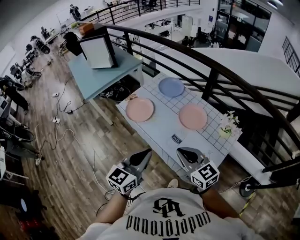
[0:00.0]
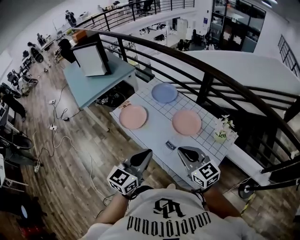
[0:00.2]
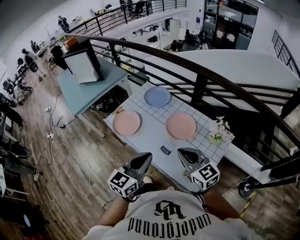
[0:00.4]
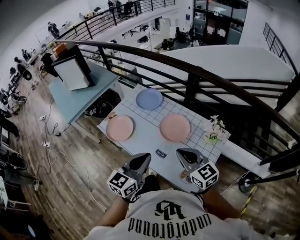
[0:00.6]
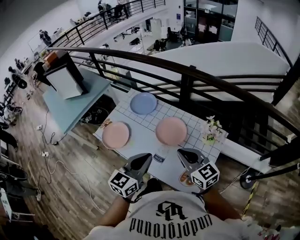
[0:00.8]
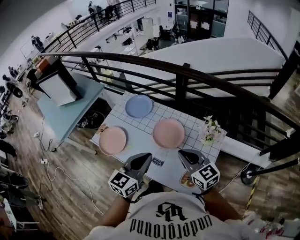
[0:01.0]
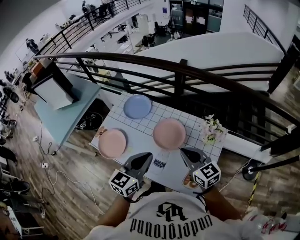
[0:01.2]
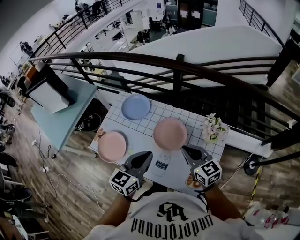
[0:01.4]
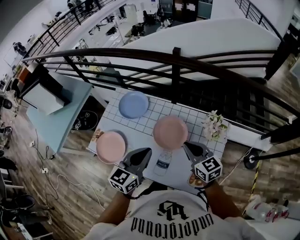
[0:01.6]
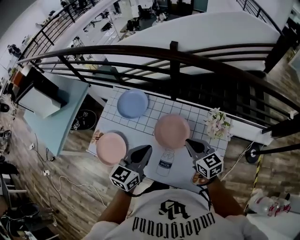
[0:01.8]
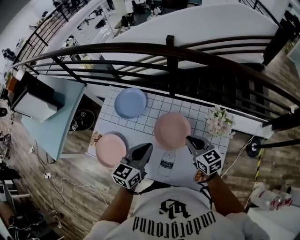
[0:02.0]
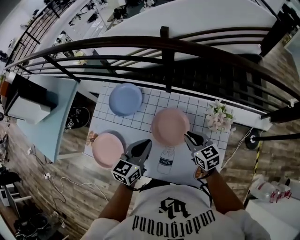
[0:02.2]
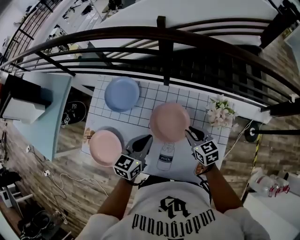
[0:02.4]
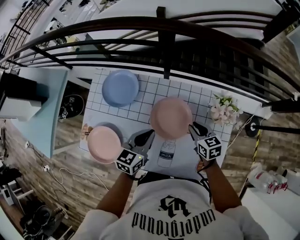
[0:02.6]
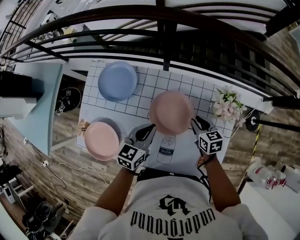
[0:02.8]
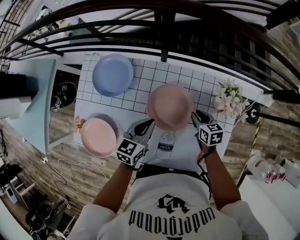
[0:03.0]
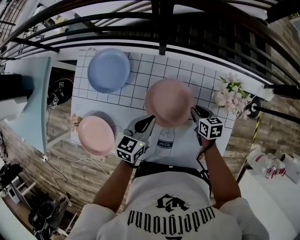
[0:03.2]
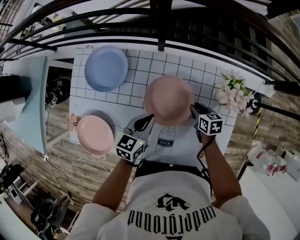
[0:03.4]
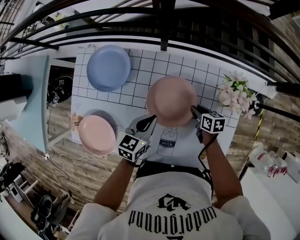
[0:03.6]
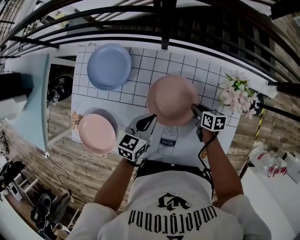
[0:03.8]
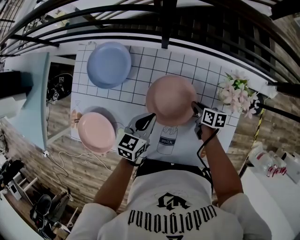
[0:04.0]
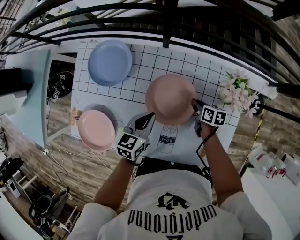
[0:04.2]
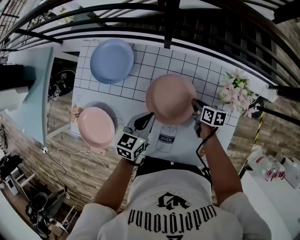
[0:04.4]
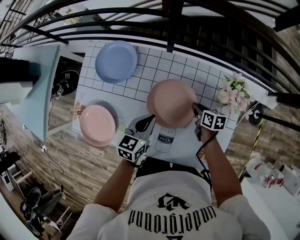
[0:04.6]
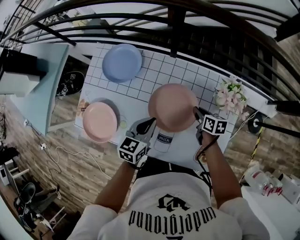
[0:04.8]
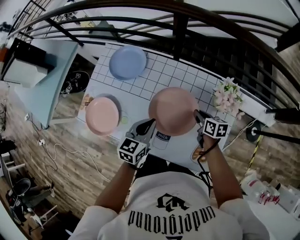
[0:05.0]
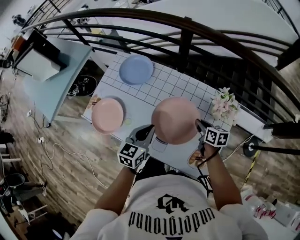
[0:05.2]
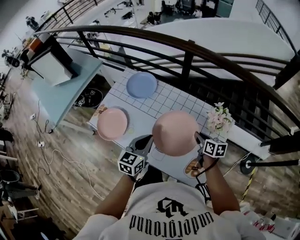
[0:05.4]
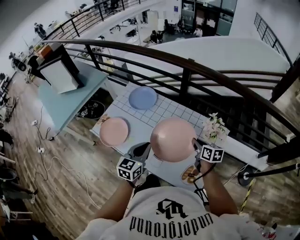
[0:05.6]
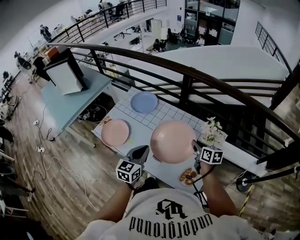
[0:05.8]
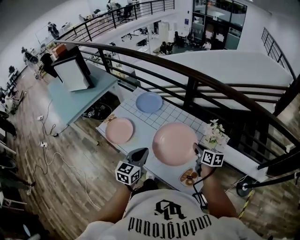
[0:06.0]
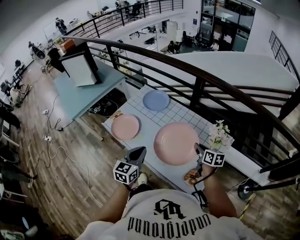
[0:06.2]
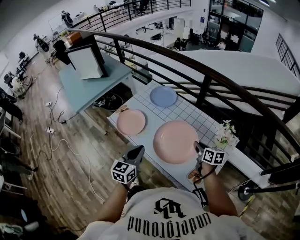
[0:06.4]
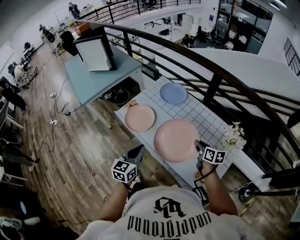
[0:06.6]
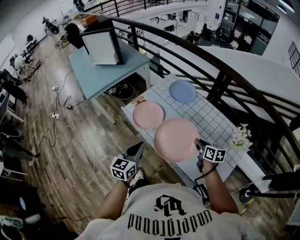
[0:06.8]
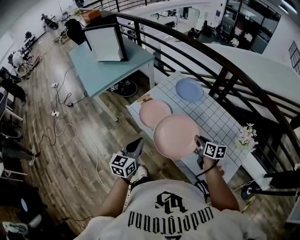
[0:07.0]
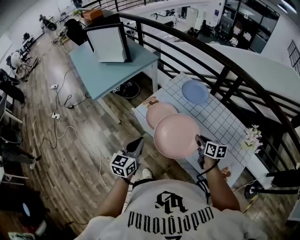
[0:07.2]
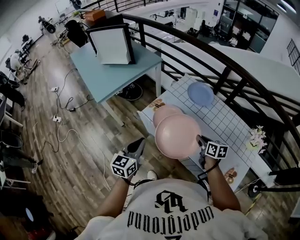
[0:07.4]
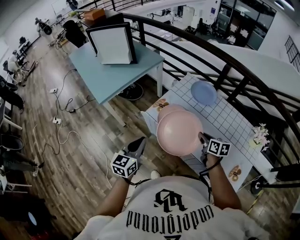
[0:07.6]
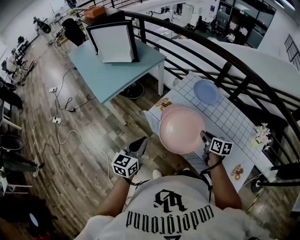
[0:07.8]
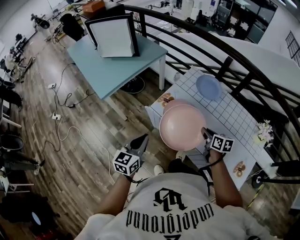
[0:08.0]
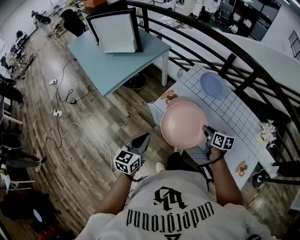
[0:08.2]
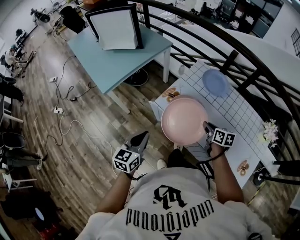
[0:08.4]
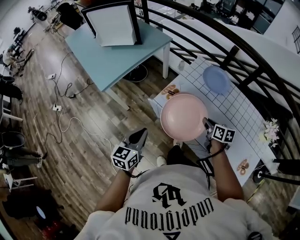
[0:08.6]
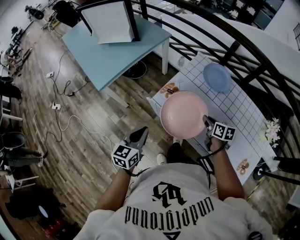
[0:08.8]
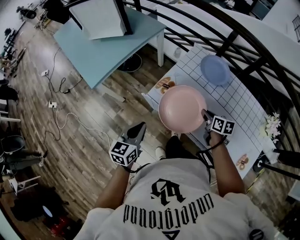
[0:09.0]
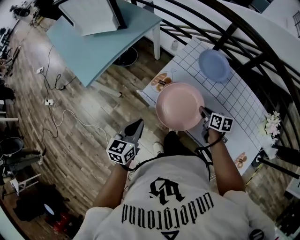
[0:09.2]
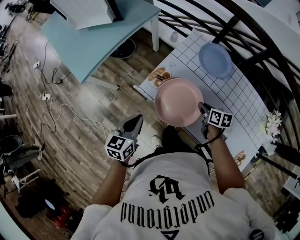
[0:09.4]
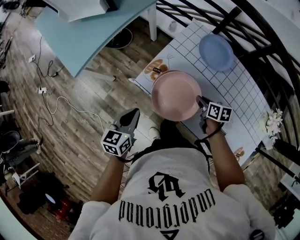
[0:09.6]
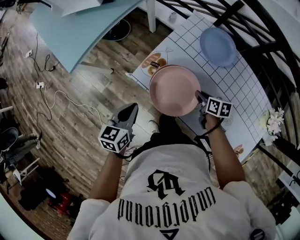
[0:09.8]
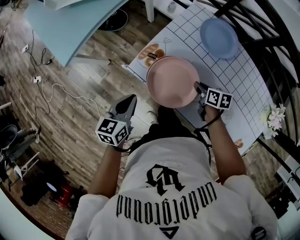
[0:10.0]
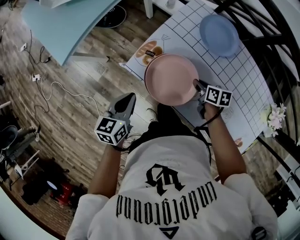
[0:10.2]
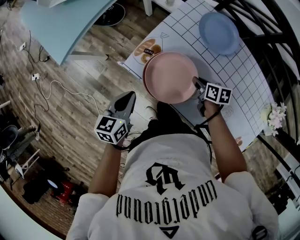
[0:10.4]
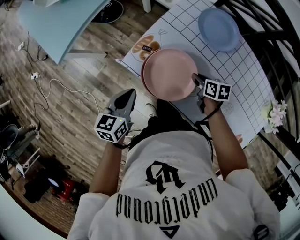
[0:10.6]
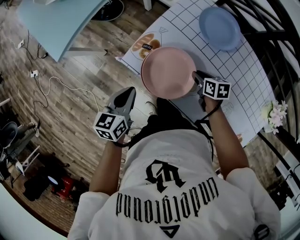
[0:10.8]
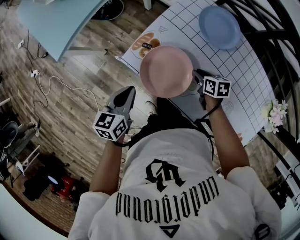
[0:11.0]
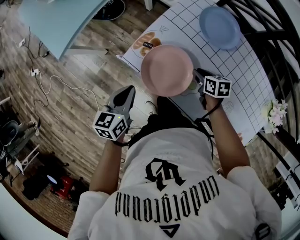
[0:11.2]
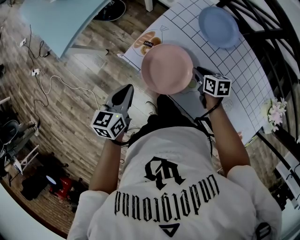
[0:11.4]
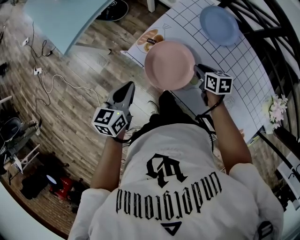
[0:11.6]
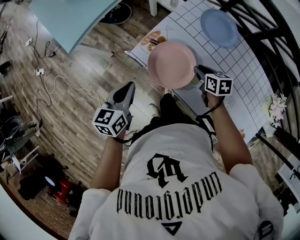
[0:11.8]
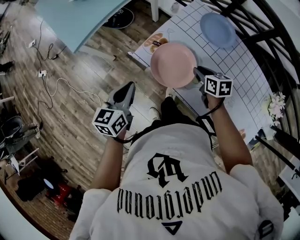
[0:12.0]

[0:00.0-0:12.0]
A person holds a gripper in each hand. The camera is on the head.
0:00.0 to 0:01.6: The left gripper is displaced forward by about 30 cm, and swivels roughly 20 degrees. Meanwhile the right gripper heads forward and to the right, covering roughly 30 cm, and turns by about 30 degrees.
0:01.6 to 0:03.0: Both grippers move downward and forward, roughly 30 cm. The left gripper changes its angle by roughly 20 degrees, while the right gripper rotates some 40 degrees.
0:03.0 to 0:04.4: The right gripper travels downward by roughly 5 cm, and rotates approximately 20 degrees.
0:04.4 to 0:06.0: The right gripper travels upward and backward by some 30 cm, and changes its angle by approximately 30 degrees. The left gripper is displaced backward and upward by some 35 cm, and swivels roughly 30 degrees.
0:06.0 to 0:07.6: The two grippers travel together, to the left, some 40 cm.
0:07.6 to 0:09.0: The two grippers go roughly 15 cm forward and downward.
0:09.0 to 0:10.4: The right gripper shifts about 15 cm downward and forward, while the left gripper shifts approximately 15 cm downward, forward and to the right.
0:10.4 to 0:12.0: The left gripper travels upward and backward by about 10 cm. Meanwhile the right gripper moves upward, roughly 10 cm, and swivels some 20 degrees.

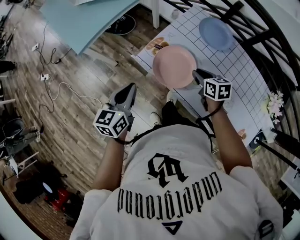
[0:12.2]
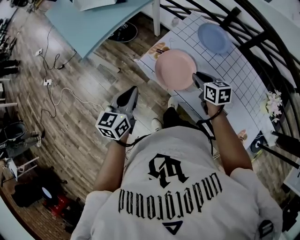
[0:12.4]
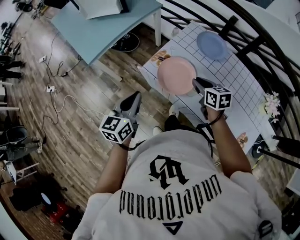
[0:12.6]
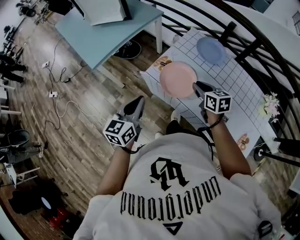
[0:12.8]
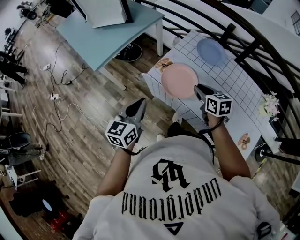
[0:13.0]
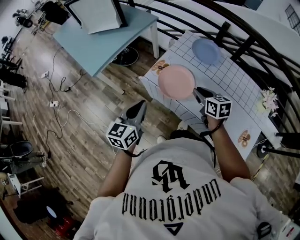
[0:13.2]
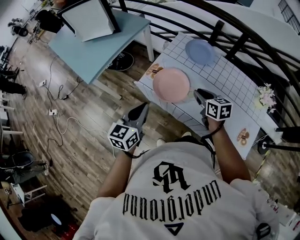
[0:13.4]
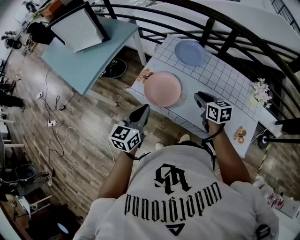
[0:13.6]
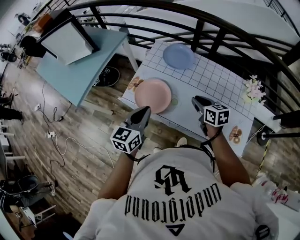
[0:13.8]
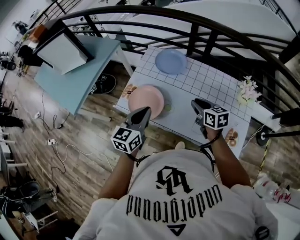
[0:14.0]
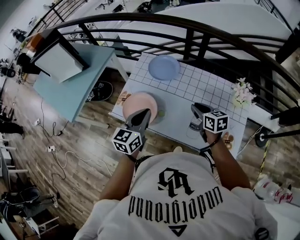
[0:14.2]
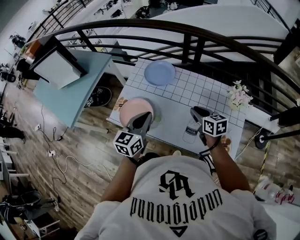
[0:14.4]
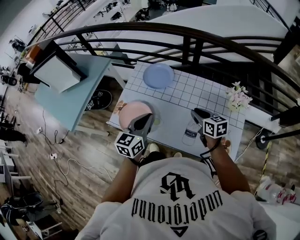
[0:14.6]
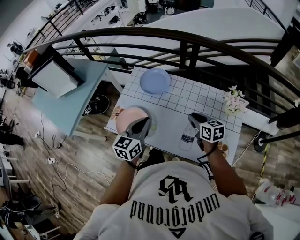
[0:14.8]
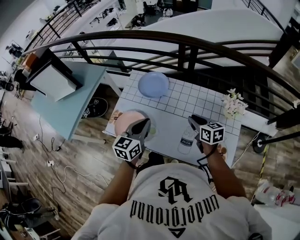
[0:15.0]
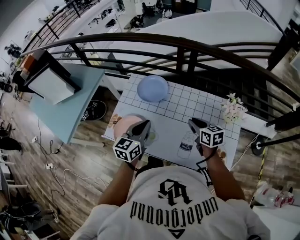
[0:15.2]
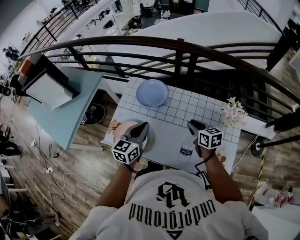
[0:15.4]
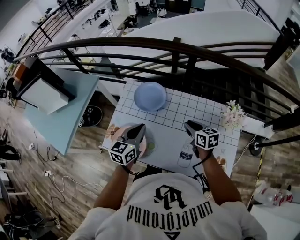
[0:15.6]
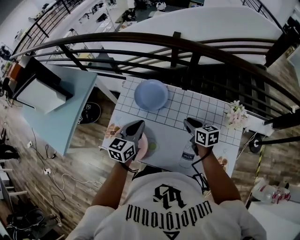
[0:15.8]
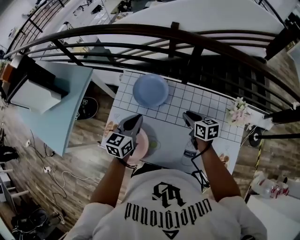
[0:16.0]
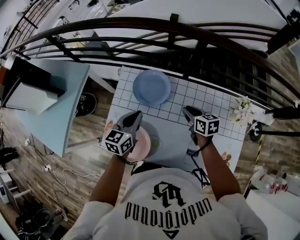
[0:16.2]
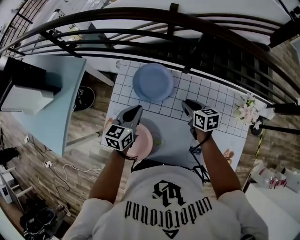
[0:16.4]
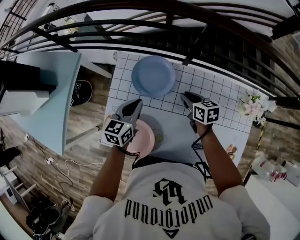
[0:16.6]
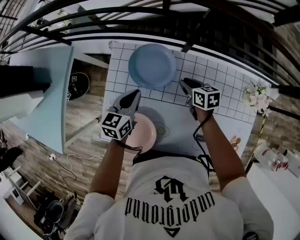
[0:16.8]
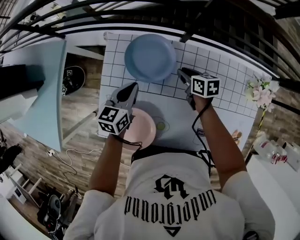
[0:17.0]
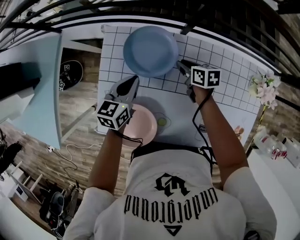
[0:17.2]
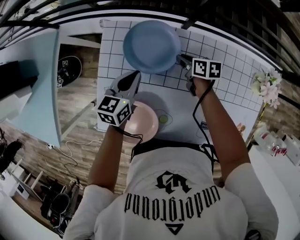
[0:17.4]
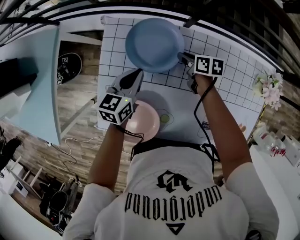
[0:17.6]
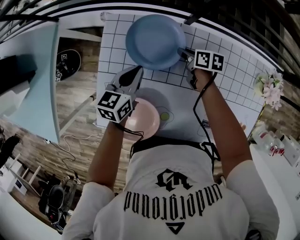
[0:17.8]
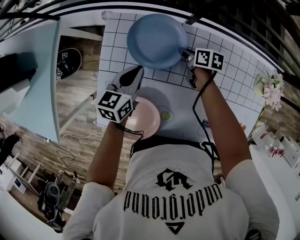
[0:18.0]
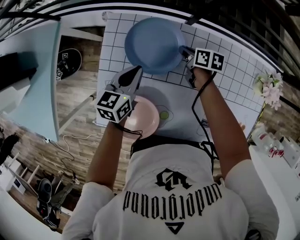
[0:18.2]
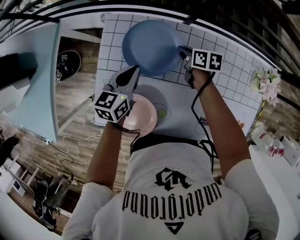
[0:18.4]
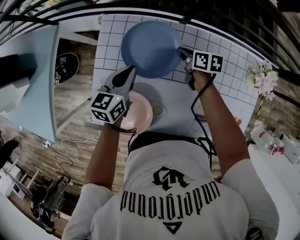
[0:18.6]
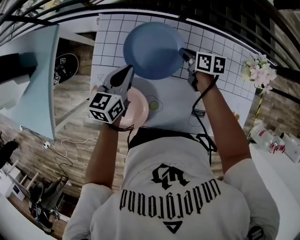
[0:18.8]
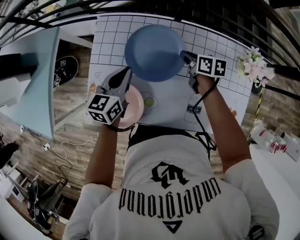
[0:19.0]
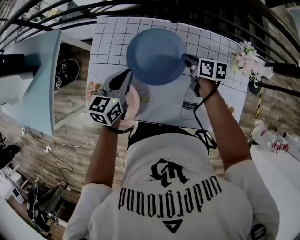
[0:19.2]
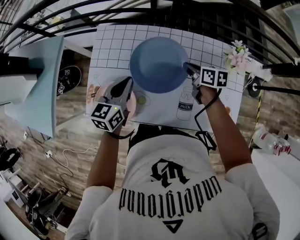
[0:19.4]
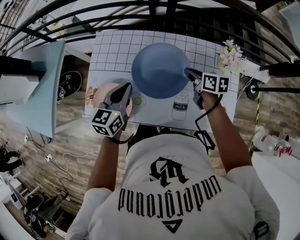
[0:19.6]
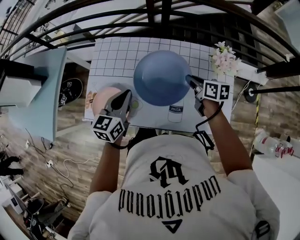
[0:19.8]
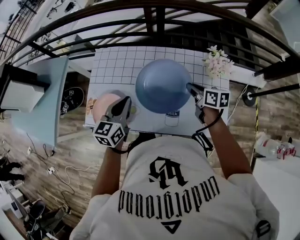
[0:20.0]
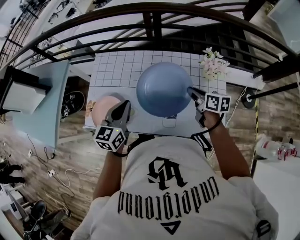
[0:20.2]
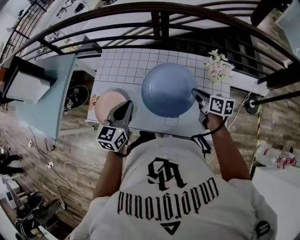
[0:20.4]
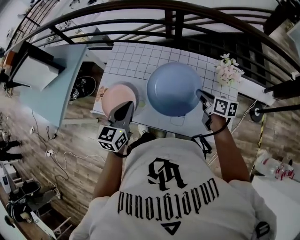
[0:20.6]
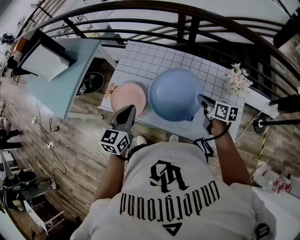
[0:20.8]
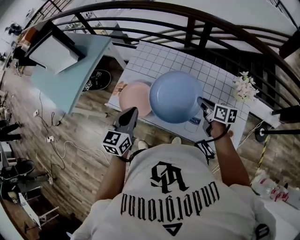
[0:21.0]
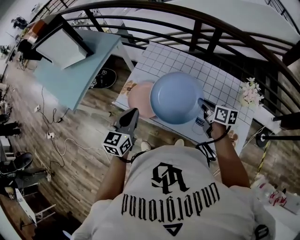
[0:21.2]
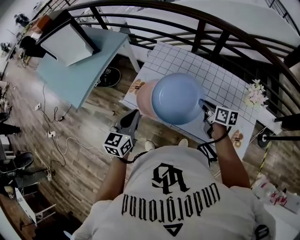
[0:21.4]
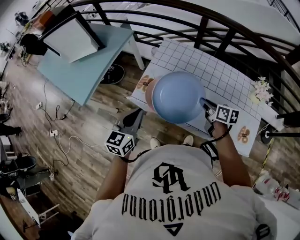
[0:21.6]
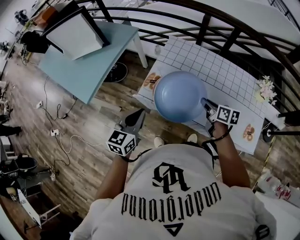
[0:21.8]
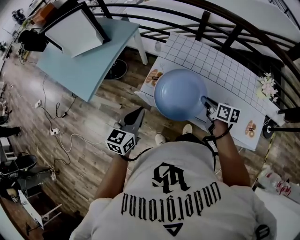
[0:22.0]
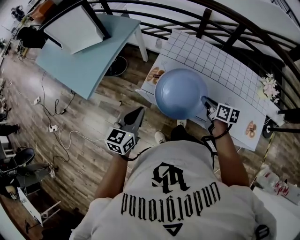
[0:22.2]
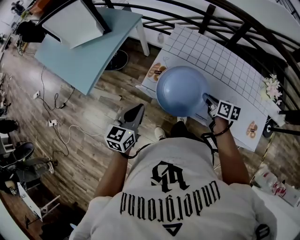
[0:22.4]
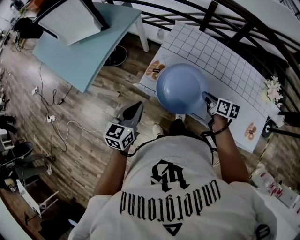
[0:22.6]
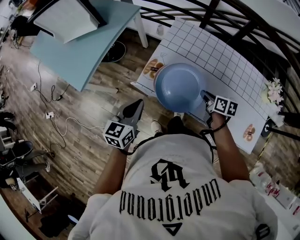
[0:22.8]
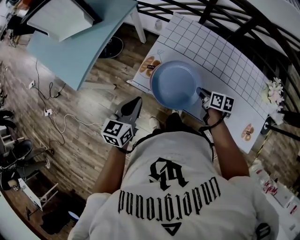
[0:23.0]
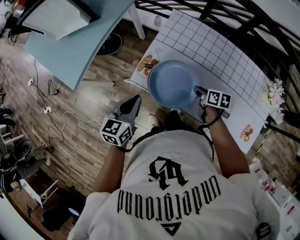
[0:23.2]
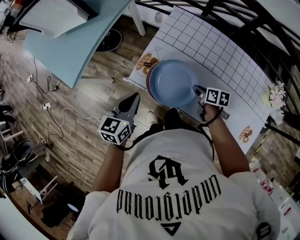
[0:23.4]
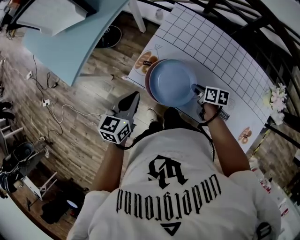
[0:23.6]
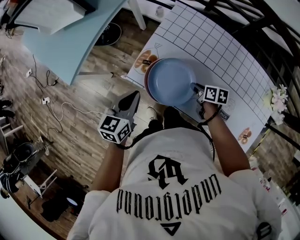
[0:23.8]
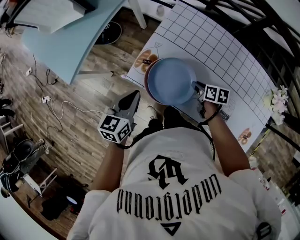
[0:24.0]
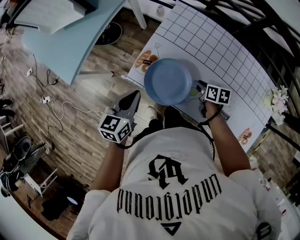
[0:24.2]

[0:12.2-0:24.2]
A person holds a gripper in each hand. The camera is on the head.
0:12.2 to 0:13.8: The left gripper is displaced to the right and upward by about 20 cm, and changes its angle by approximately 20 degrees. The right gripper moves to the right, upward and backward, about 20 cm.
0:13.8 to 0:15.2: Both grippers move to the right and forward, roughly 20 cm.
0:15.2 to 0:16.6: The grippers both shift forward, downward and to the left by approximately 25 cm.
0:16.6 to 0:18.2: The right gripper goes roughly 15 cm downward and forward, and turns by about 20 degrees; the left gripper is displaced downward by approximately 10 cm.
0:18.2 to 0:19.8: Both grippers move backward, upward and to the right, about 35 cm.
0:19.8 to 0:21.2: The two grippers go approximately 20 cm to the left and backward. The left gripper turns by some 20 degrees.
0:21.2 to 0:22.6: The two grippers go some 20 cm to the left.
0:22.6 to 0:24.2: The right gripper heads downward and forward, covering about 15 cm. The left gripper moves forward, to the right and downward, roughly 10 cm.
